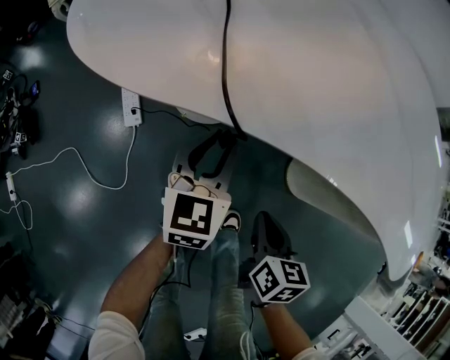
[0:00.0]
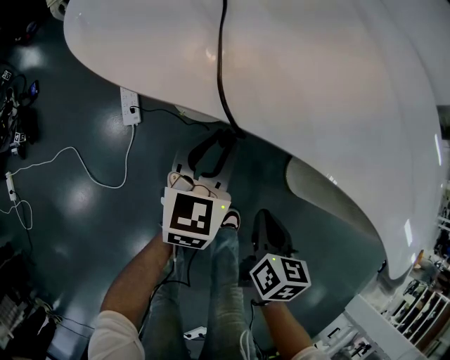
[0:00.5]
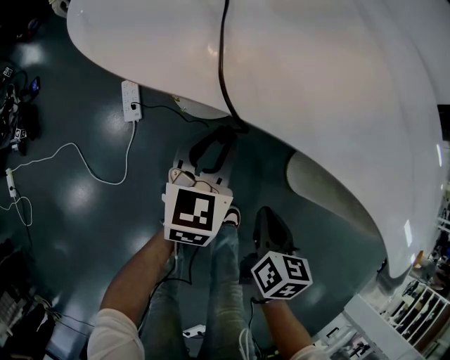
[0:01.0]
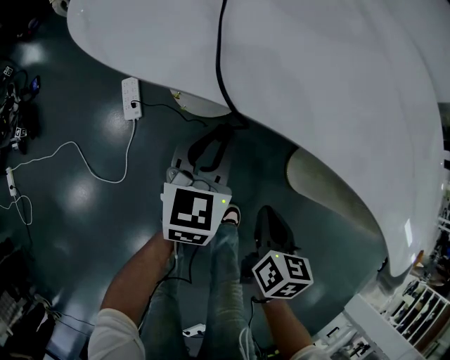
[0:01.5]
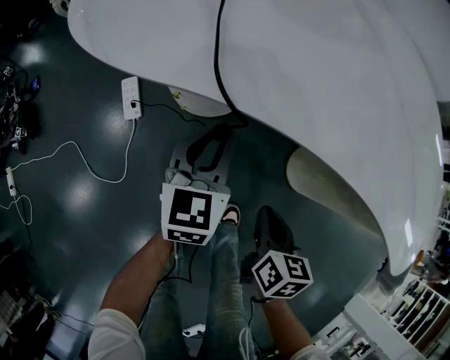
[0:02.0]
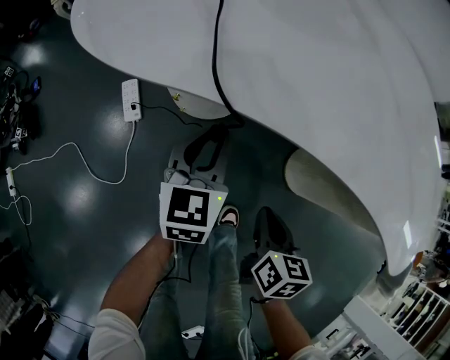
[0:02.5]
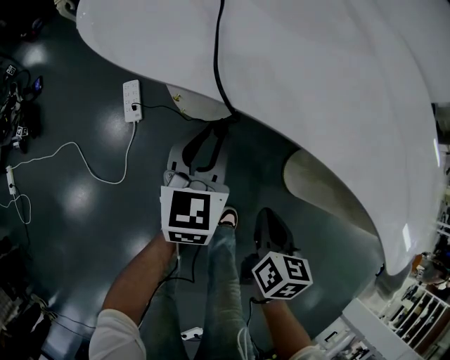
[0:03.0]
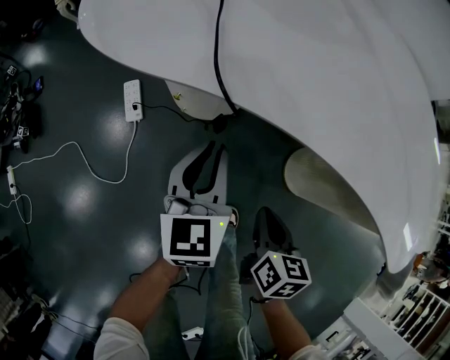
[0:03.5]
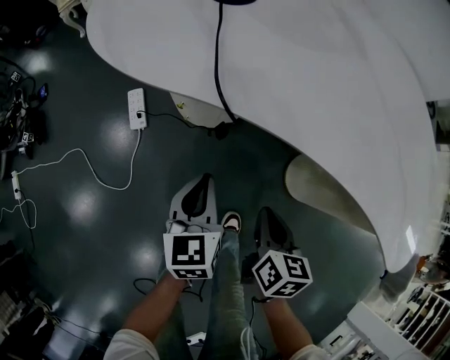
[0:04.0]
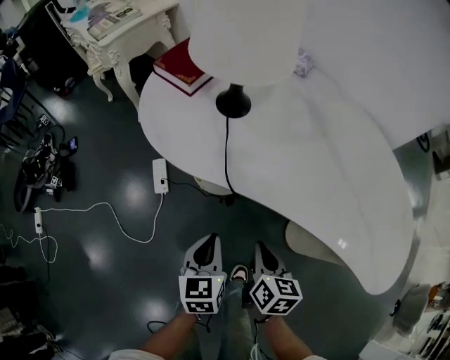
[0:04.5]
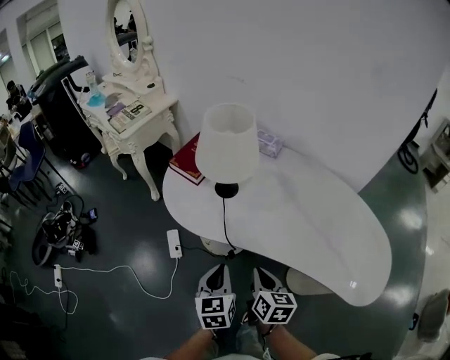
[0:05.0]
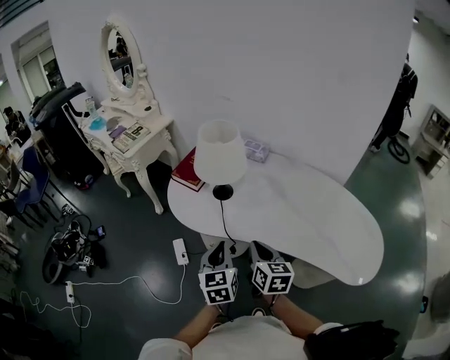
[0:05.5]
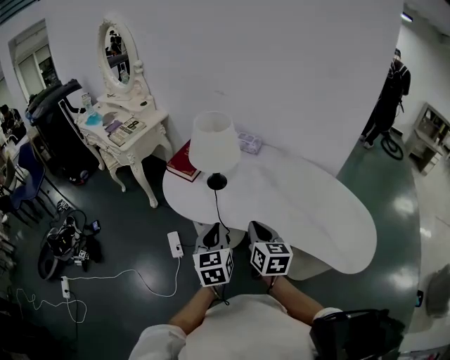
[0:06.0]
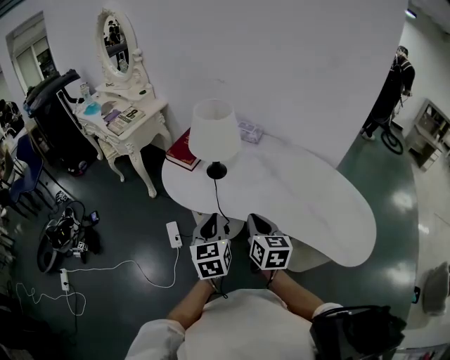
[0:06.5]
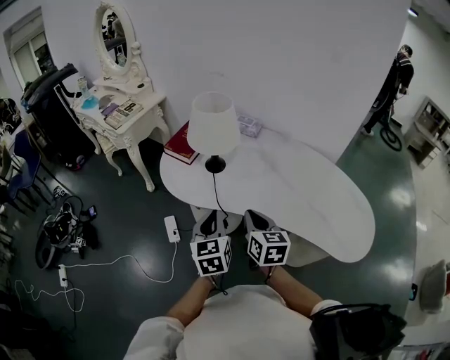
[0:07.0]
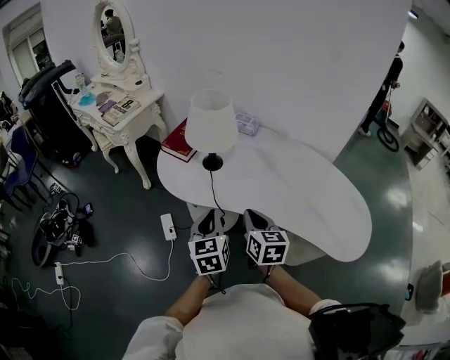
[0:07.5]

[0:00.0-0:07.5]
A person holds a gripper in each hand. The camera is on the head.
0:00.0 to 0:02.0: The grippers stay close to where they were, moving slightly.
0:02.0 to 0:04.0: The left gripper heads backward, covering roughly 10 cm.
0:04.0 to 0:05.5: The grippers both shift upward by approximately 35 cm. The right gripper turns by some 20 degrees.
0:05.5 to 0:07.5: The grippers stay close to where they were, moving slightly.

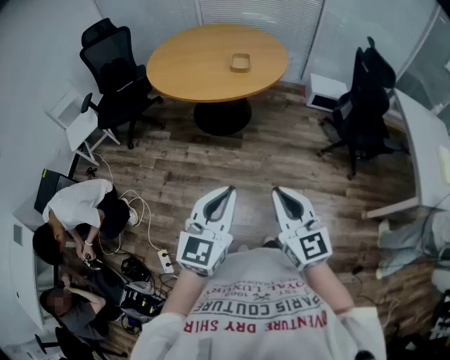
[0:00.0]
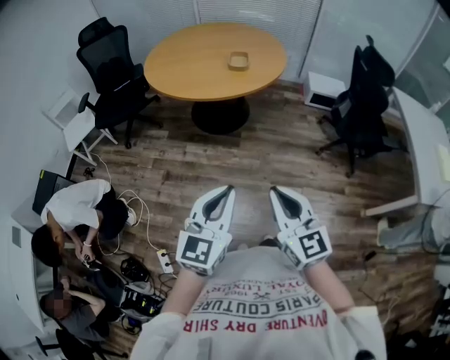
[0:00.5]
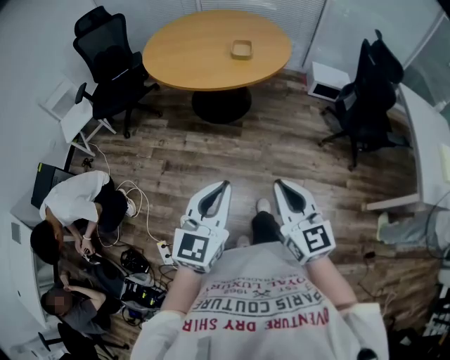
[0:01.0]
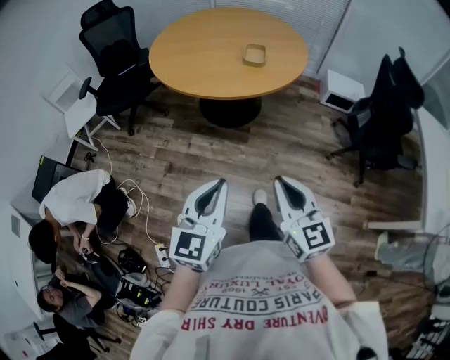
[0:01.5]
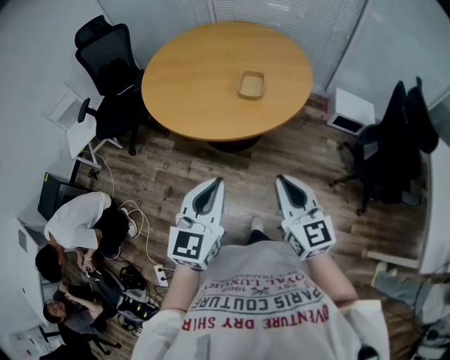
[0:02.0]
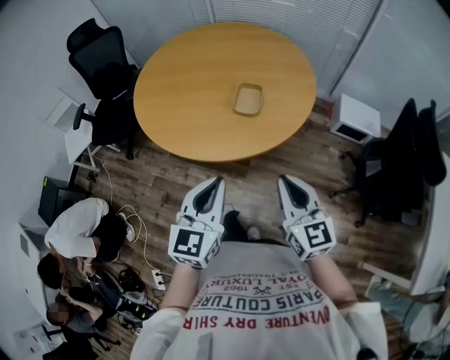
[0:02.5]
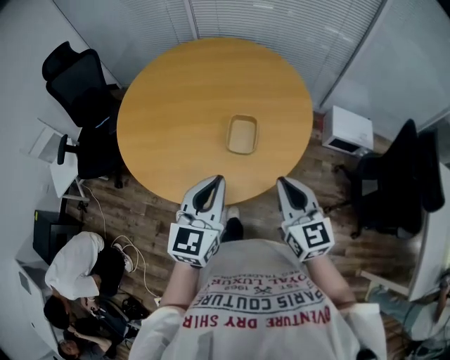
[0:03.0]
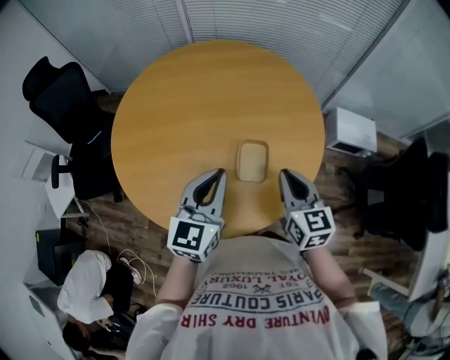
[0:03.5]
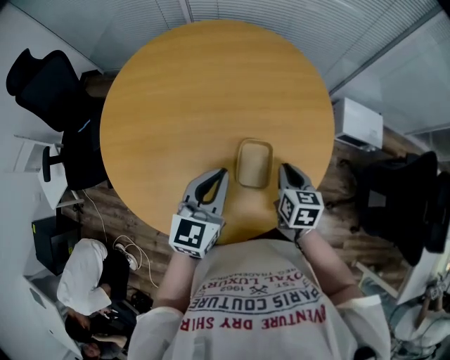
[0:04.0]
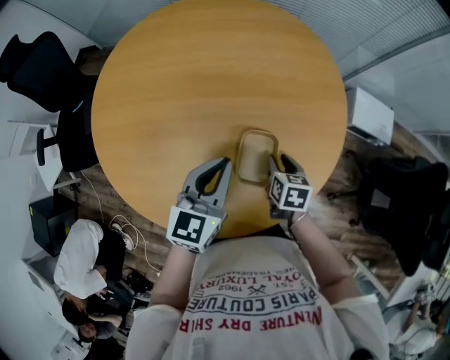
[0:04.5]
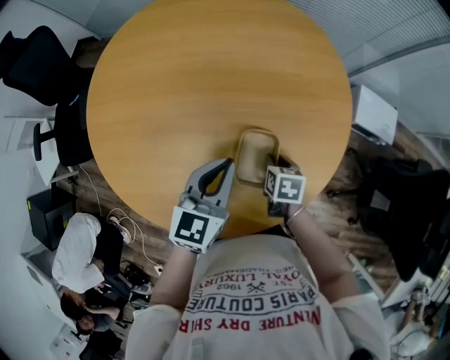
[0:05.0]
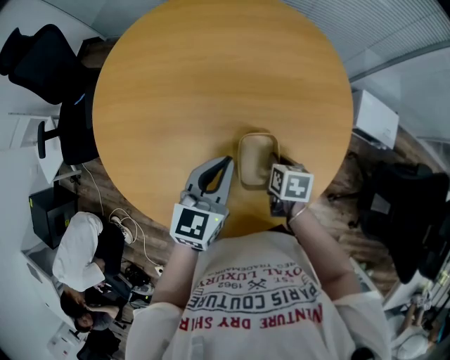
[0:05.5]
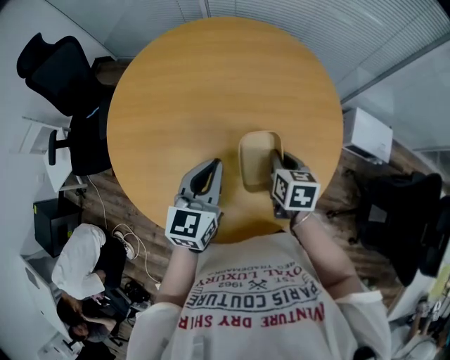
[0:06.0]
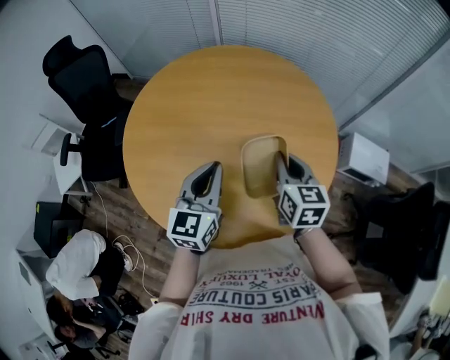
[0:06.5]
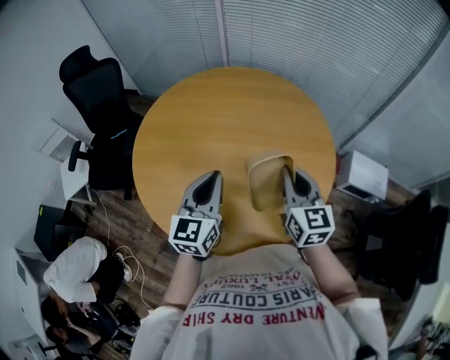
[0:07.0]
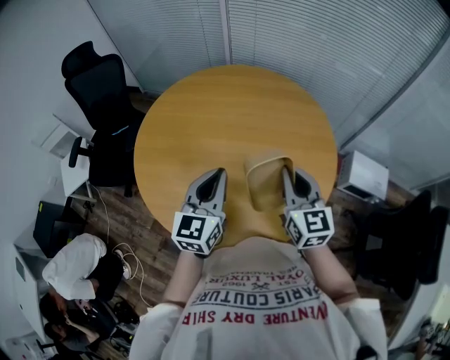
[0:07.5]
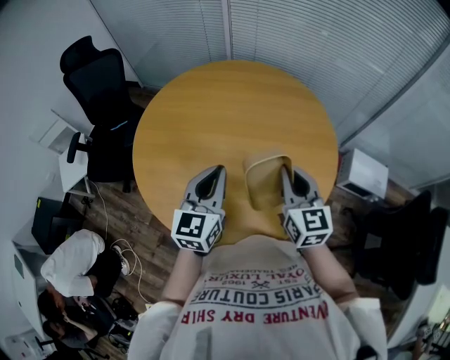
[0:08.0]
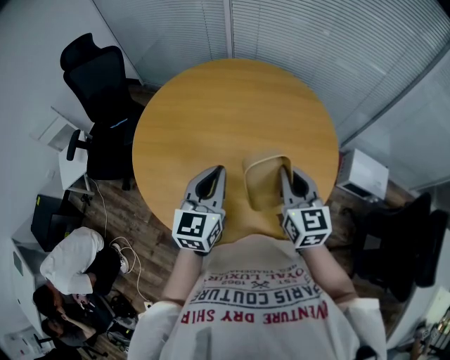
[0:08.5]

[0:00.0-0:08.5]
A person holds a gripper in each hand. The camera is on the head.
0:00.0 to 0:02.0: Both grippers move forward, some 30 cm.
0:02.0 to 0:04.0: The two grippers travel together, forward, some 50 cm. The right gripper heads downward, covering approximately 20 cm, and points its fingers approximately 30 degrees further downward.
0:04.0 to 0:06.5: The left gripper shifts by approximately 5 cm, while the right gripper travels upward, forward and to the left by roughly 15 cm, turns by roughly 20 degrees, and opens and closes again.
0:06.5 to 0:08.5: The right gripper shifts roughly 5 cm upward.

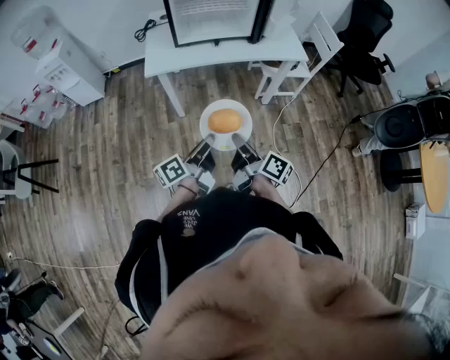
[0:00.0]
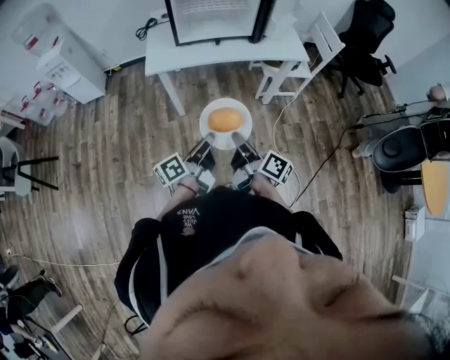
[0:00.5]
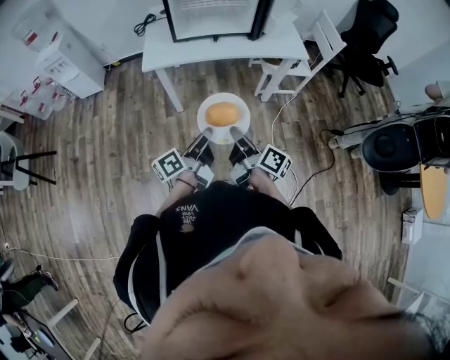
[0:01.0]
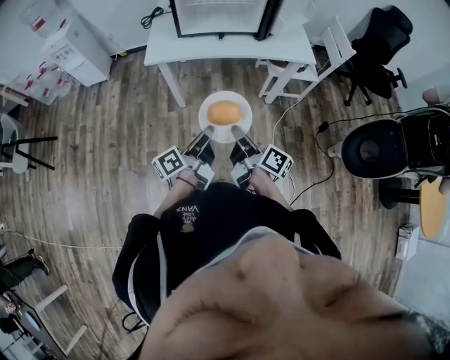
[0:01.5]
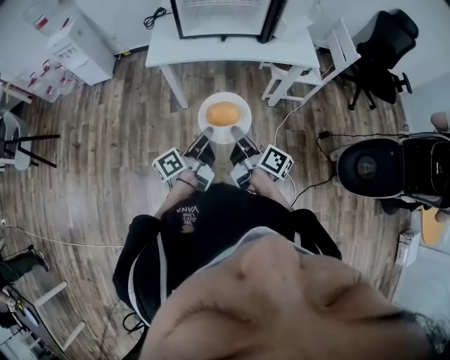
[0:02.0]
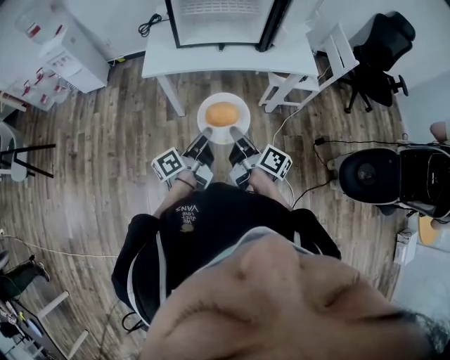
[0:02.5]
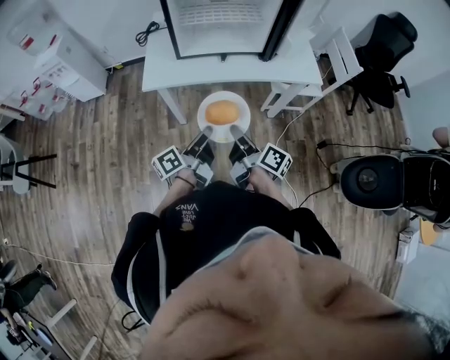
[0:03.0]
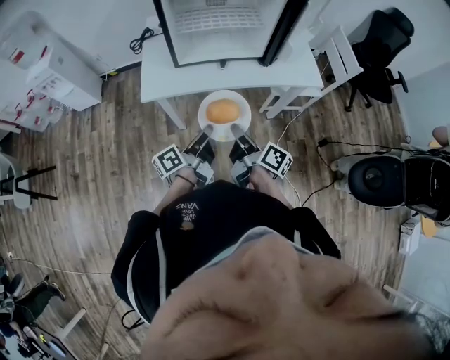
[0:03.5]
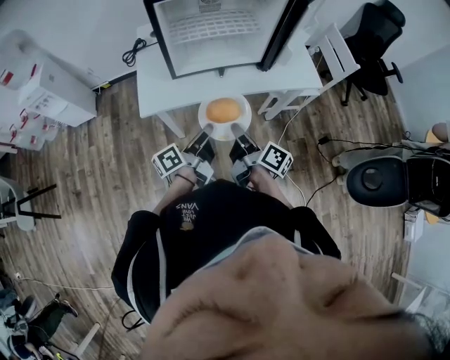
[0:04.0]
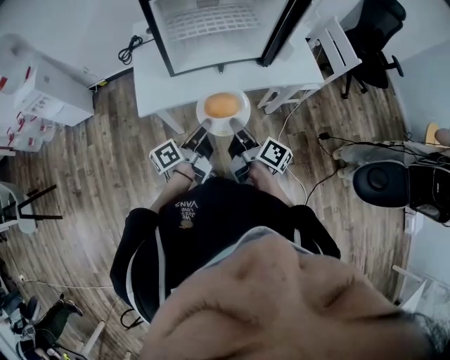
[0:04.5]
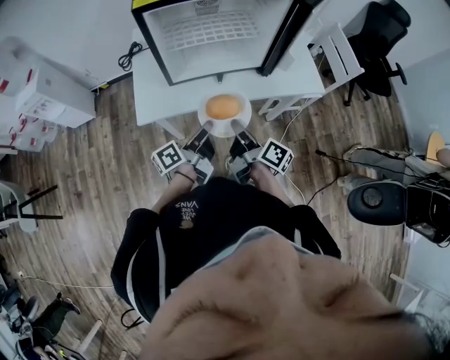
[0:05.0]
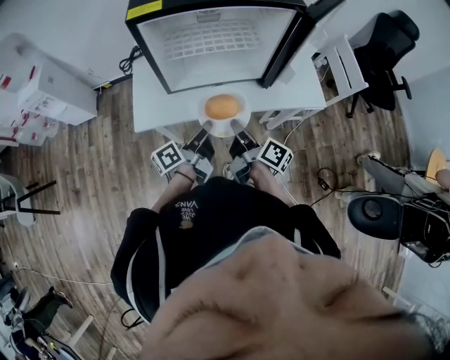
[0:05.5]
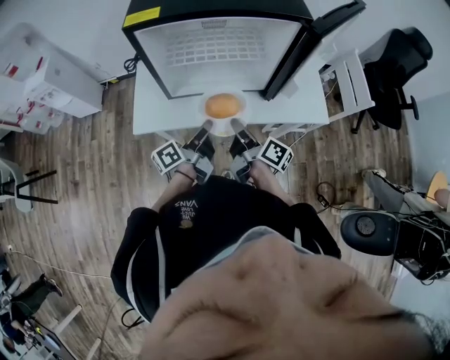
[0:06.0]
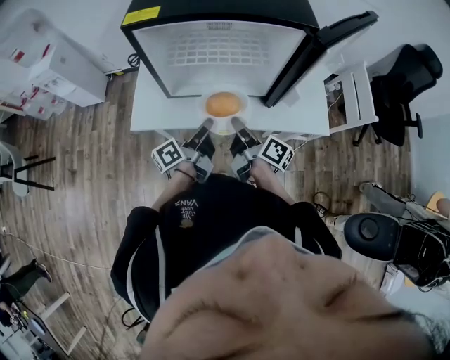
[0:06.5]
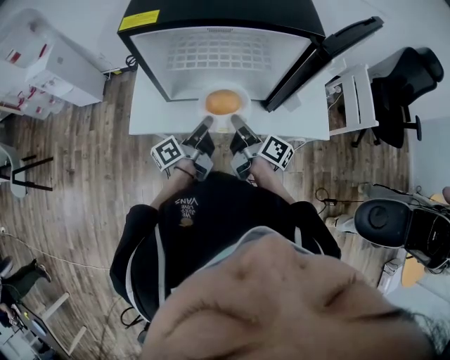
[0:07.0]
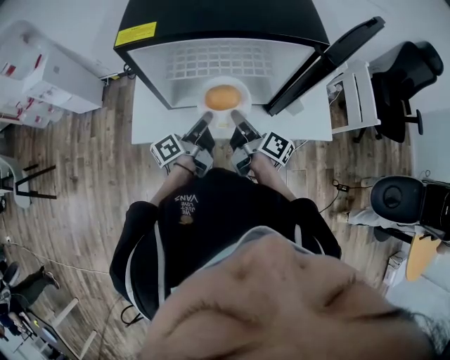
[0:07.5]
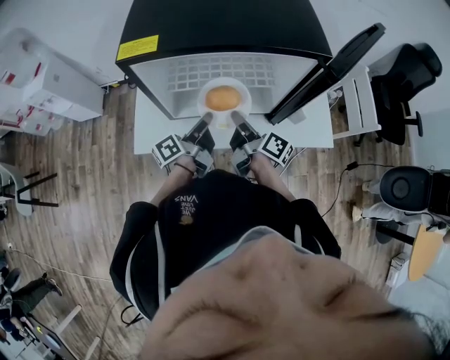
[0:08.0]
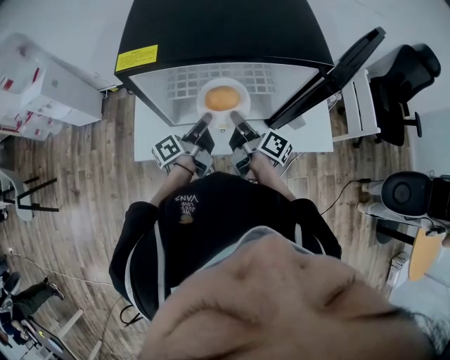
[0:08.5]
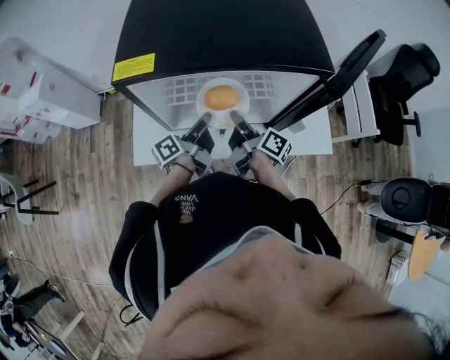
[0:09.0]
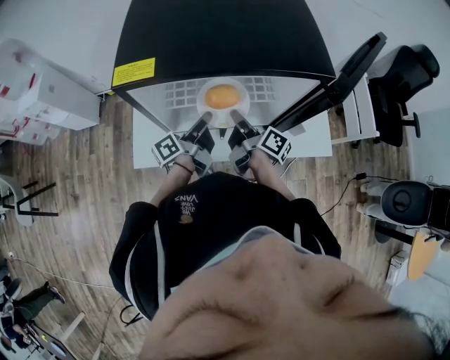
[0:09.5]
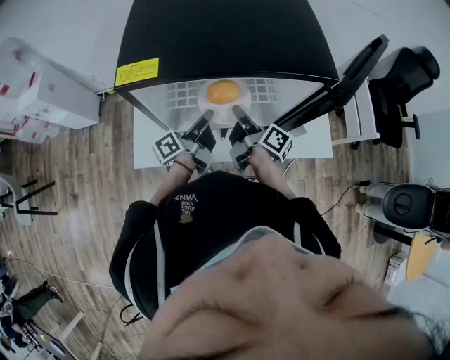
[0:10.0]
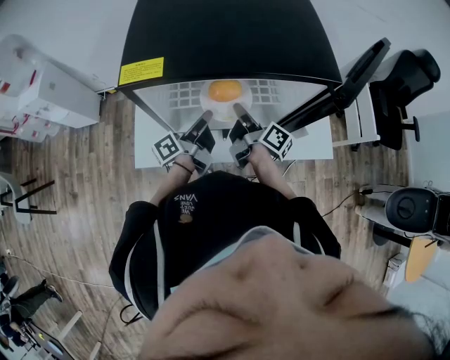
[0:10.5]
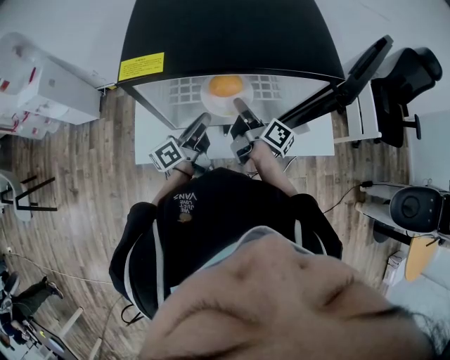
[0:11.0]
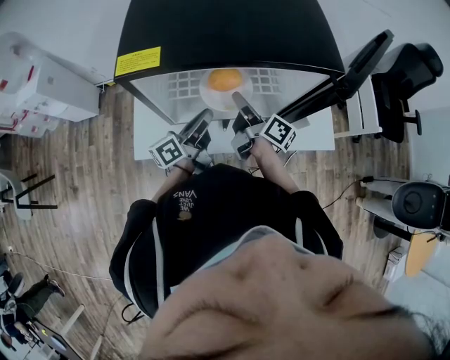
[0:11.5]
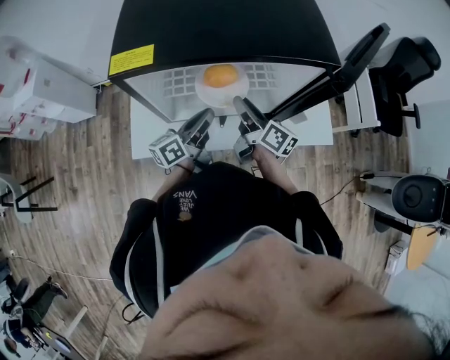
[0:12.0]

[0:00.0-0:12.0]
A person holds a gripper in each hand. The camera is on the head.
0:00.0 to 0:02.0: The right gripper shifts some 5 cm forward; the left gripper ends up roughly 5 cm from where it was.
0:02.0 to 0:04.0: The grippers both shift forward by approximately 25 cm.
0:04.0 to 0:06.0: The two grippers go about 15 cm forward.
0:06.0 to 0:08.0: Both grippers move forward, roughly 10 cm.
0:08.0 to 0:10.0: The two grippers go approximately 5 cm forward.
0:10.0 to 0:12.0: The right gripper swivels approximately 20 degrees, and opens its fingers. The left gripper changes its angle by approximately 30 degrees.
